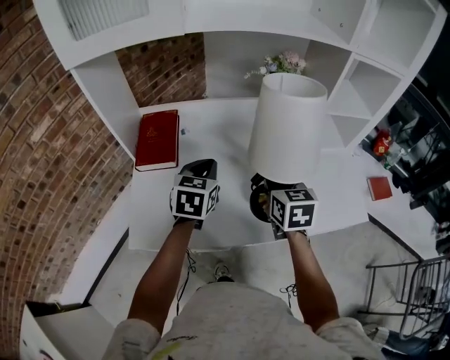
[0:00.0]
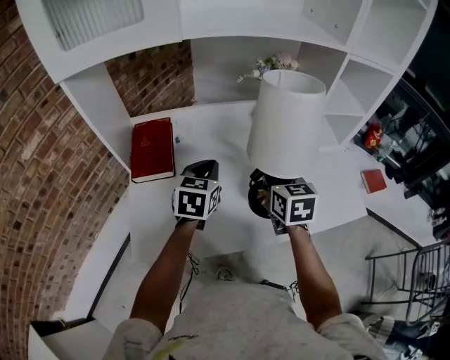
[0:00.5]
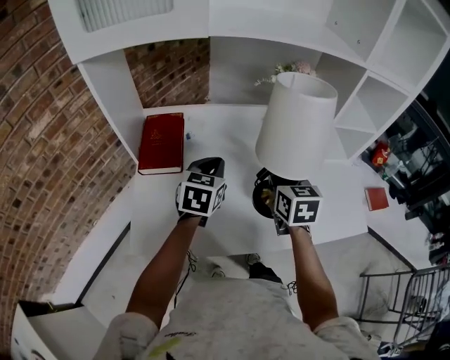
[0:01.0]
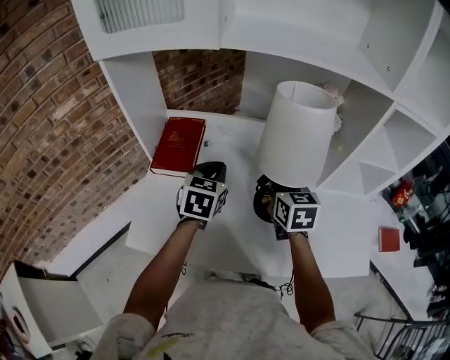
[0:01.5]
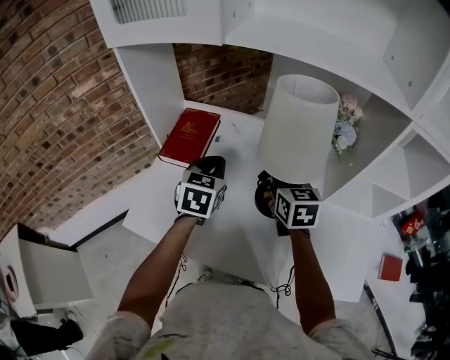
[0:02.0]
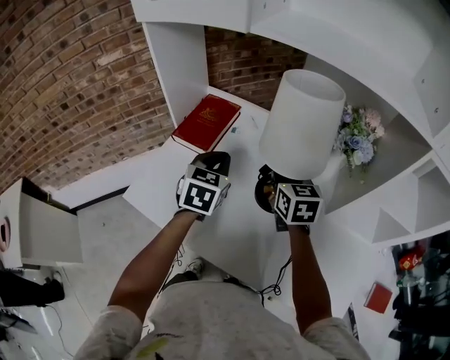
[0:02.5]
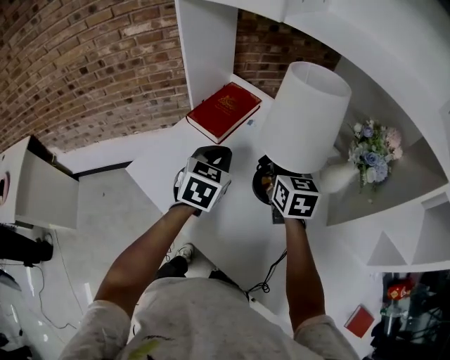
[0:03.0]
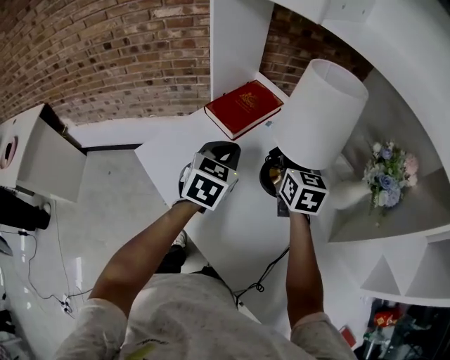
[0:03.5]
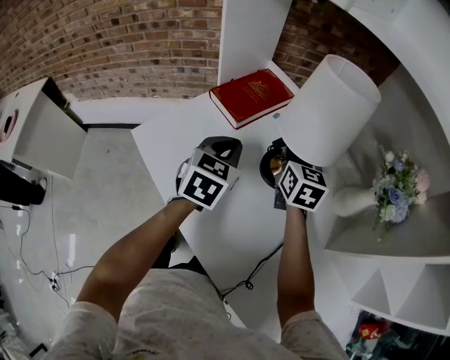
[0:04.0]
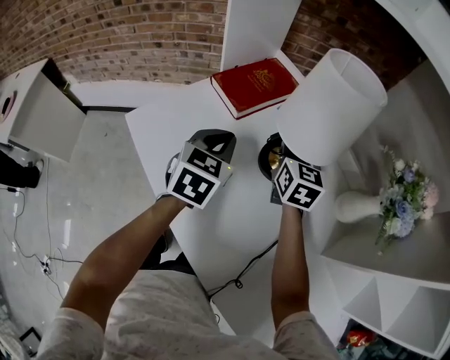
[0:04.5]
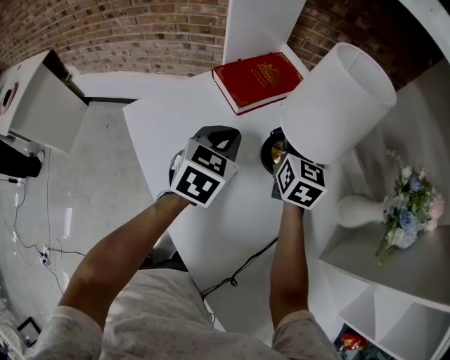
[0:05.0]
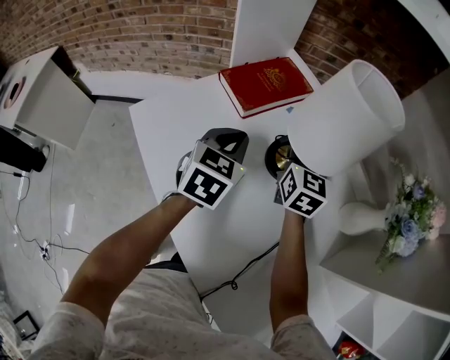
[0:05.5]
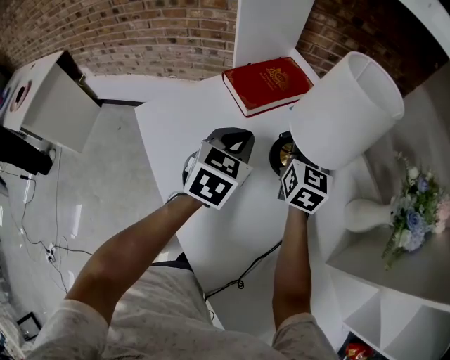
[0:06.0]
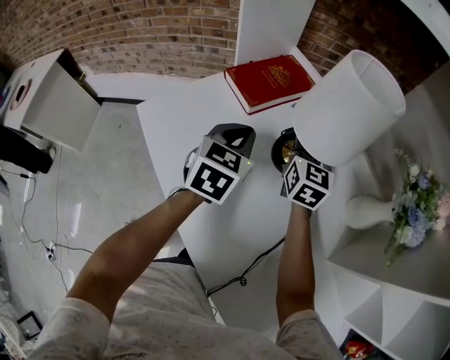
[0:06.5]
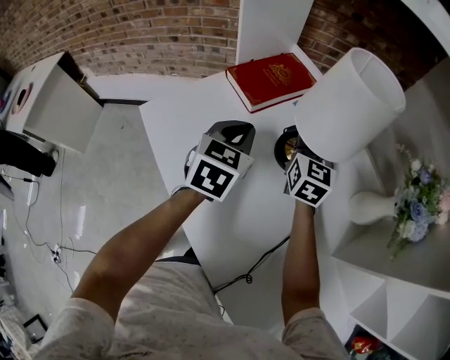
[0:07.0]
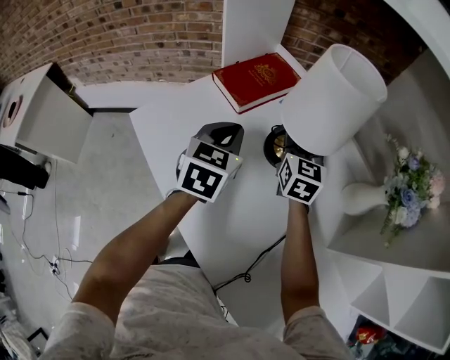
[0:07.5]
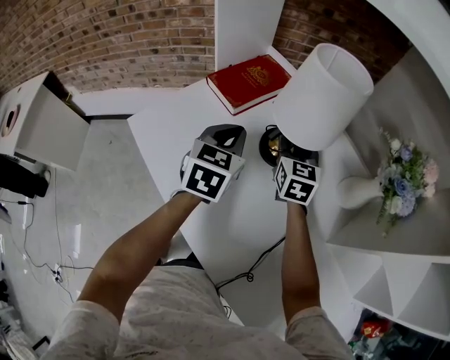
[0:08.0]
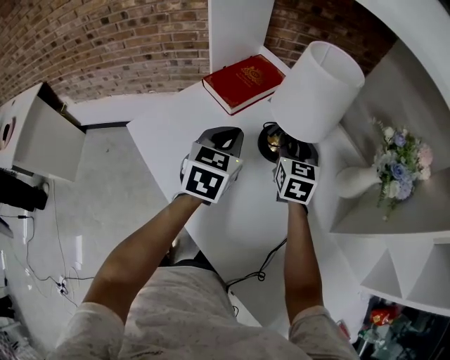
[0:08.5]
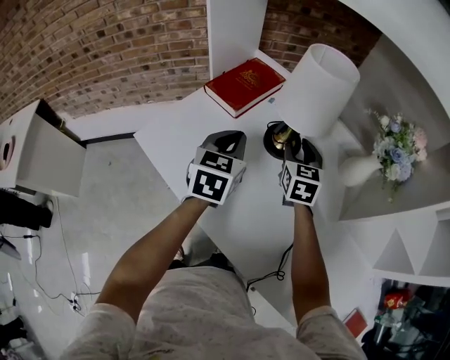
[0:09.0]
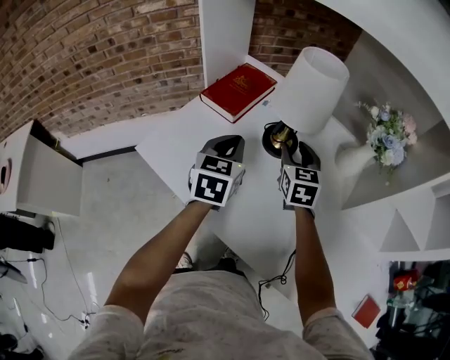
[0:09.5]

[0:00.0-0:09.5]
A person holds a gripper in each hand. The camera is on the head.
0:00.0 to 0:02.0: The left gripper changes place by approximately 5 cm, and swivels approximately 20 degrees. Meanwhile the right gripper changes place by some 15 cm, and changes its angle by some 20 degrees.
0:02.0 to 0:04.0: The right gripper is displaced forward, to the left and downward by about 15 cm, and swivels approximately 20 degrees; the left gripper is displaced downward by approximately 5 cm, and swivels about 30 degrees.
0:04.0 to 0:07.5: The grippers stay close to where they were, moving slightly.
0:07.5 to 0:09.5: The right gripper heads backward, covering roughly 10 cm, while the left gripper moves some 5 cm.

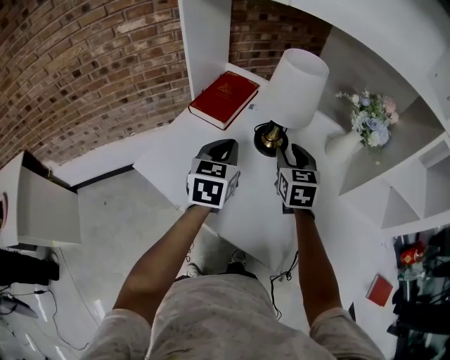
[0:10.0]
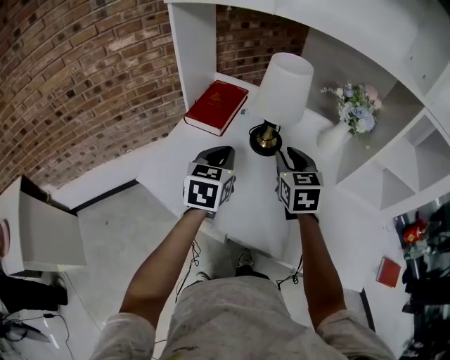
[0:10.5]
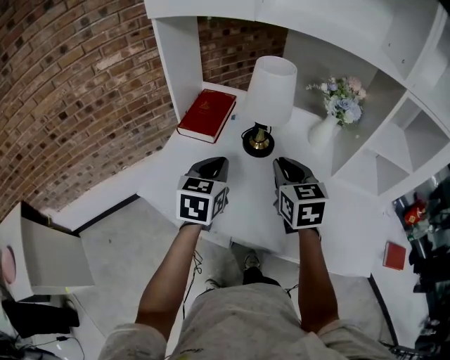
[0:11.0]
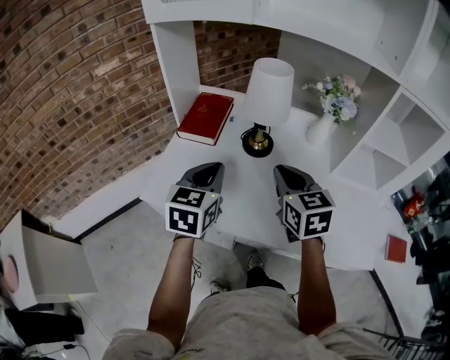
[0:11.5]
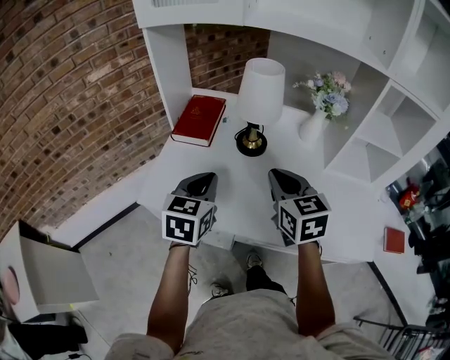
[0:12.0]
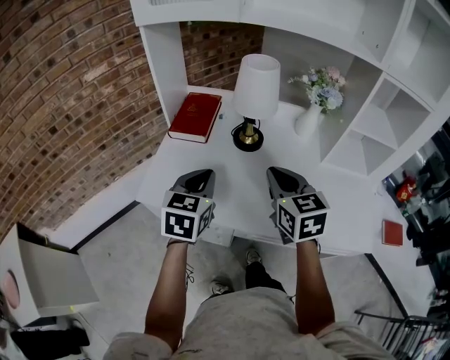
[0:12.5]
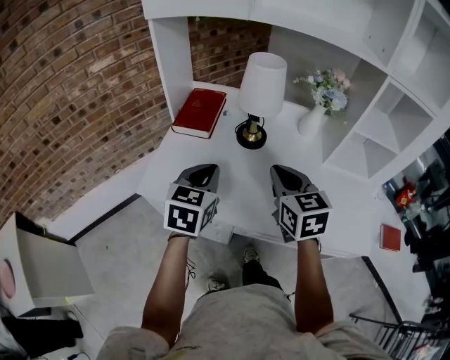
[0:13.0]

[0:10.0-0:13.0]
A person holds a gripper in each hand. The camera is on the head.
0:10.0 to 0:11.5: The right gripper shifts some 15 cm backward and upward, and closes; the left gripper travels backward and upward by about 10 cm.
0:11.5 to 0:13.0: There are only small adjustments of the grippers.

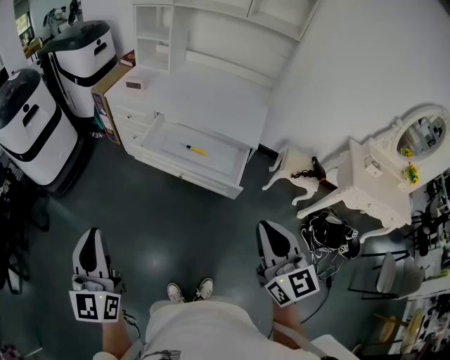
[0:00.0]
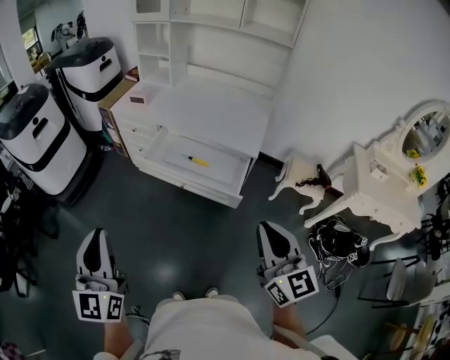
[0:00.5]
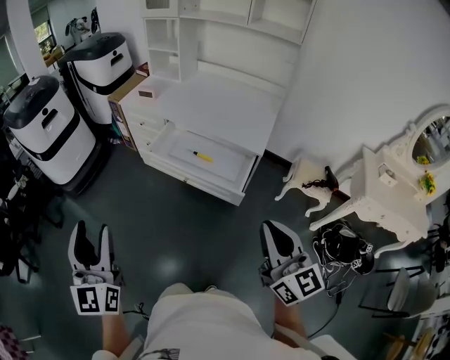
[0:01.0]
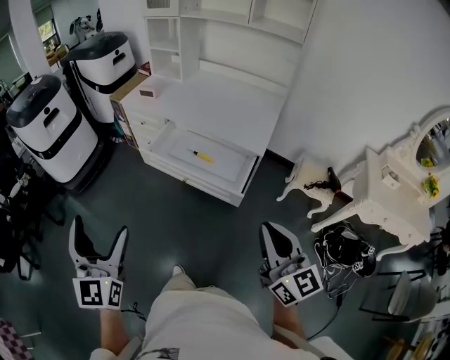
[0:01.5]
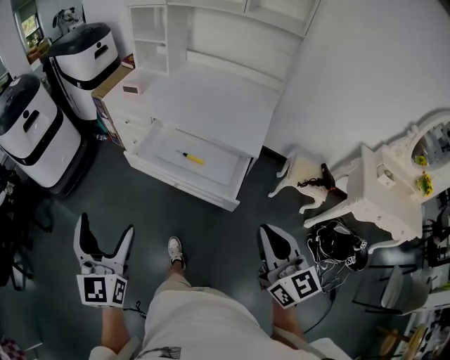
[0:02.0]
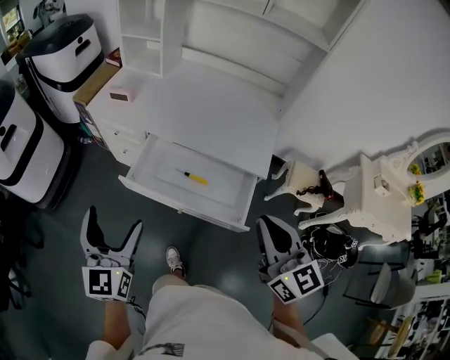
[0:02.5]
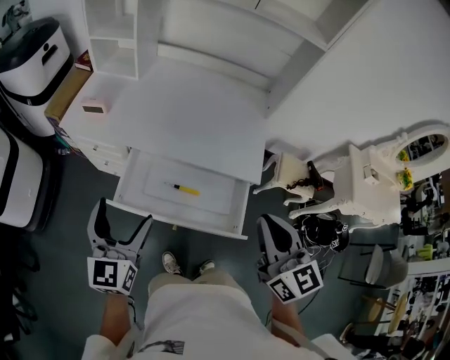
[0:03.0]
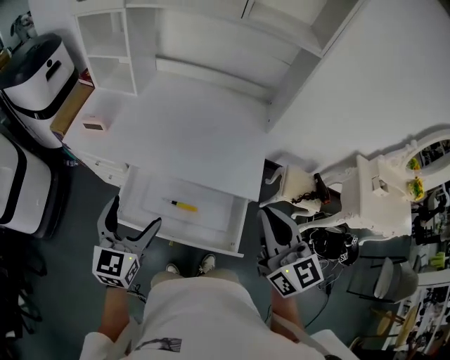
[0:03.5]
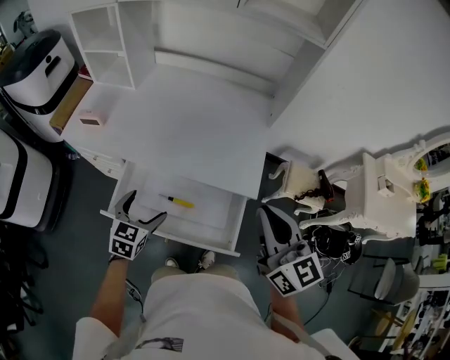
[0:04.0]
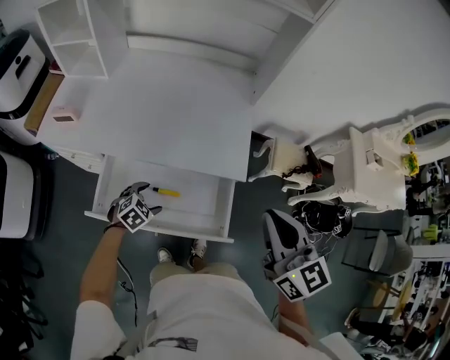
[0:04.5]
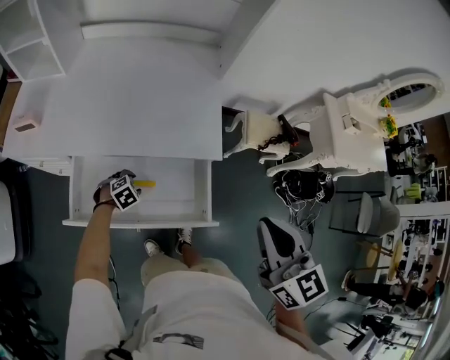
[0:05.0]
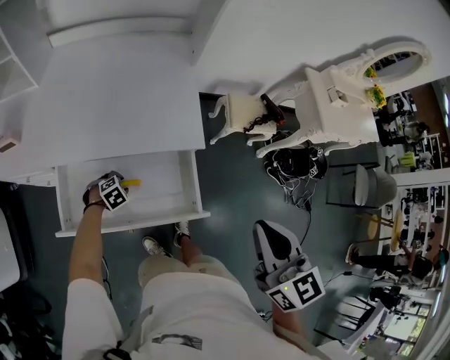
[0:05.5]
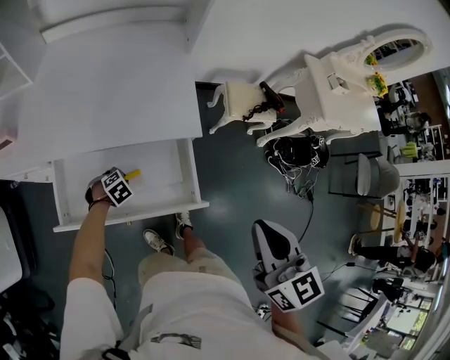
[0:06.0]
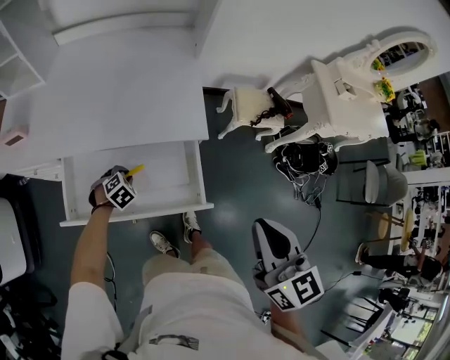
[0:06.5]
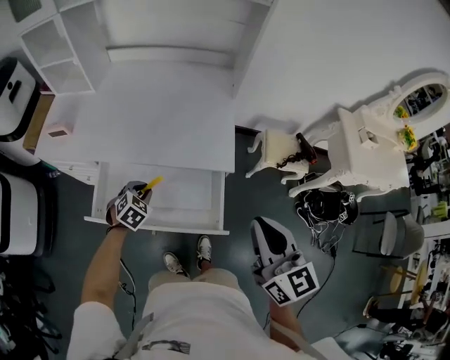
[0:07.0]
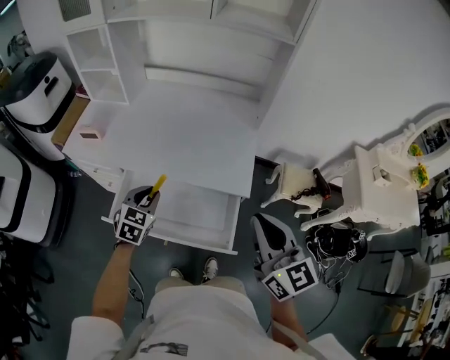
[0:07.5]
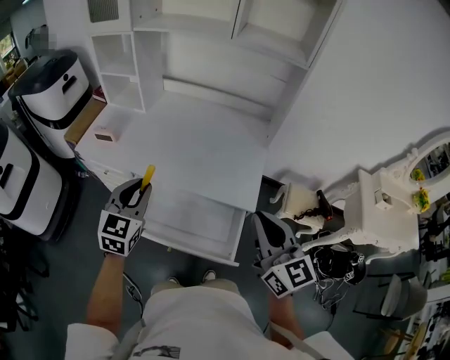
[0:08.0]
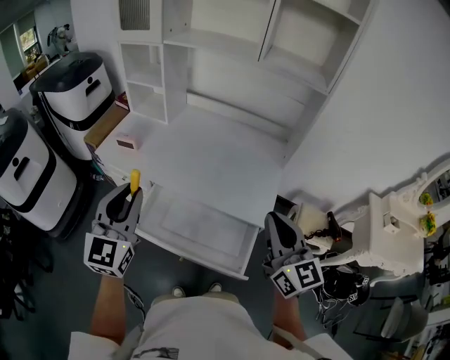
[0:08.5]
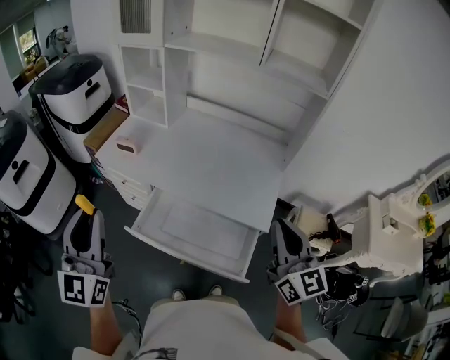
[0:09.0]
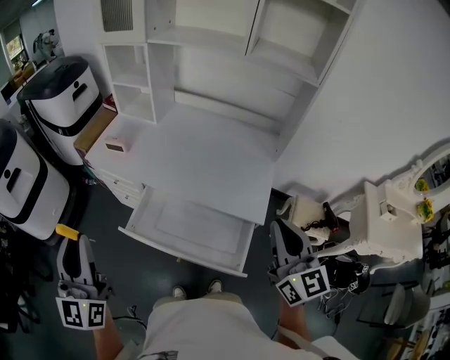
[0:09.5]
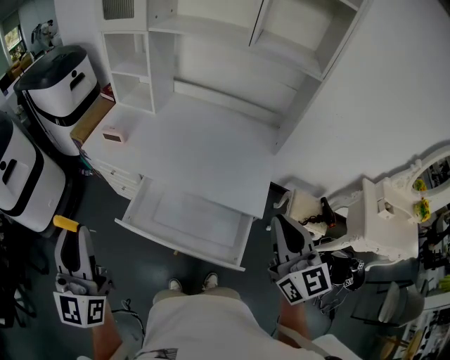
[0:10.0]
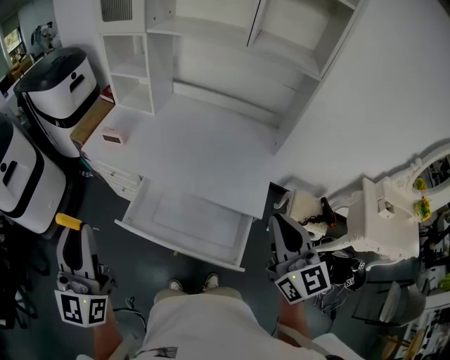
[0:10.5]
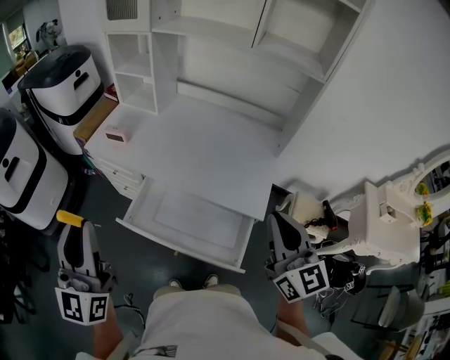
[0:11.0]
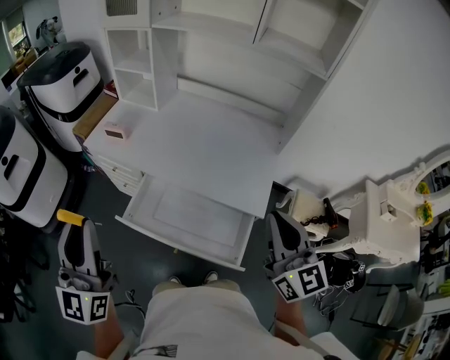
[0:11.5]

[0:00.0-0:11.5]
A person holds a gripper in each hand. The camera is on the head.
0:00.0 to 0:02.0: The grippers both shift to the right and forward by approximately 10 cm. The left gripper opens its fingers.
0:02.0 to 0:04.0: The right gripper is displaced forward by some 35 cm. The left gripper travels forward and downward by about 50 cm, and tips its fingers downward by approximately 30 degrees.
0:04.0 to 0:06.0: The right gripper changes place by about 15 cm, and swivels roughly 30 degrees; the left gripper moves downward, approximately 25 cm, points its fingers approximately 40 degrees further downward, and closes its fingers.
0:06.0 to 0:07.5: The left gripper moves upward, approximately 30 cm, and tilts its fingers approximately 40 degrees upward. Meanwhile the right gripper ends up roughly 10 cm from where it was, and turns by approximately 30 degrees.
0:07.5 to 0:09.5: The left gripper moves upward, to the left and backward, some 40 cm, and tips its fingers upward by roughly 50 degrees; the right gripper shifts some 5 cm upward.
0:09.5 to 0:11.5: The grippers stay close to where they were, moving slightly.

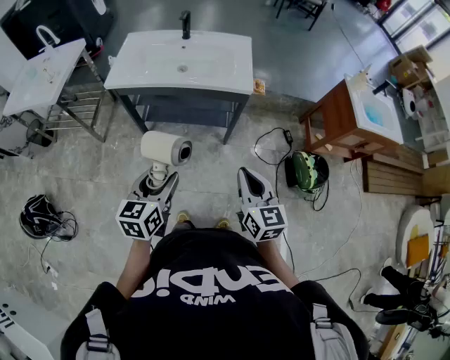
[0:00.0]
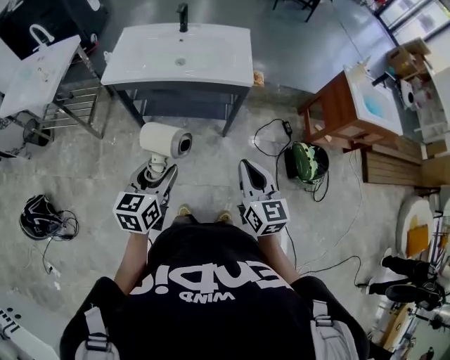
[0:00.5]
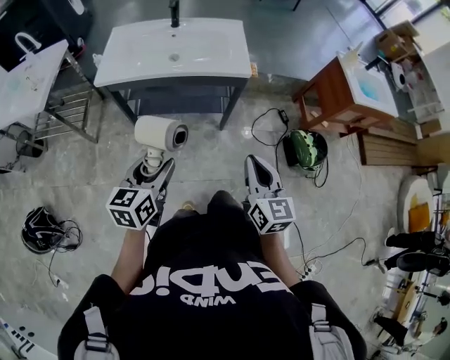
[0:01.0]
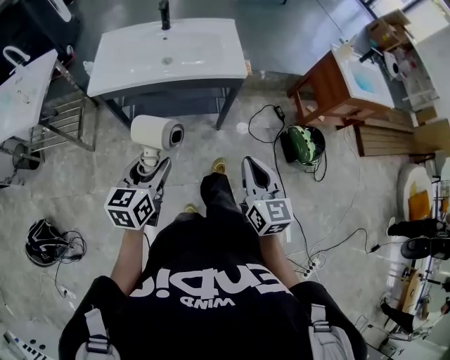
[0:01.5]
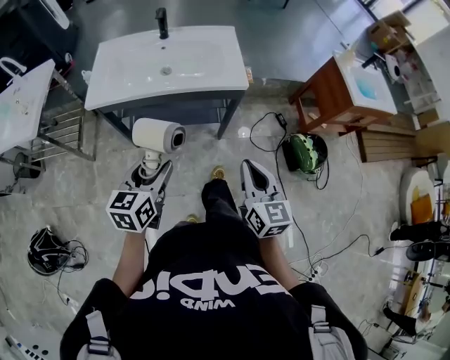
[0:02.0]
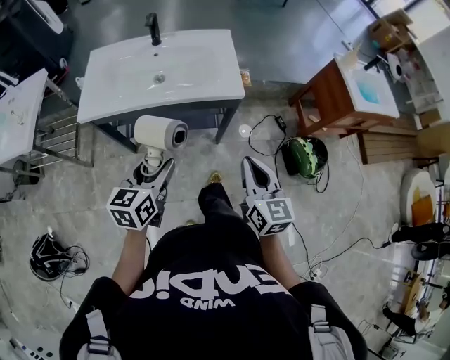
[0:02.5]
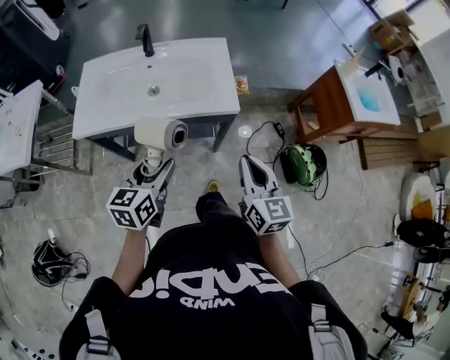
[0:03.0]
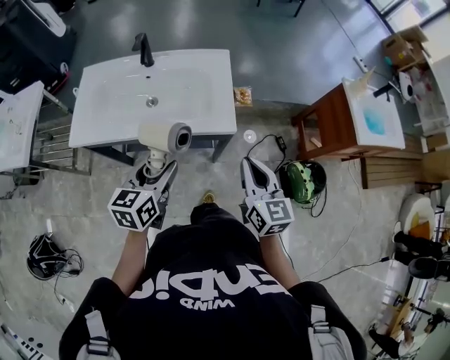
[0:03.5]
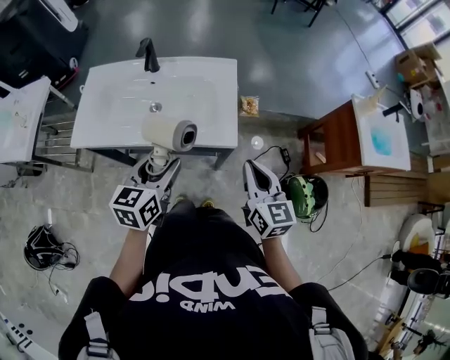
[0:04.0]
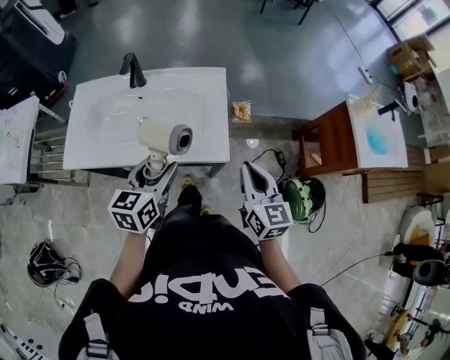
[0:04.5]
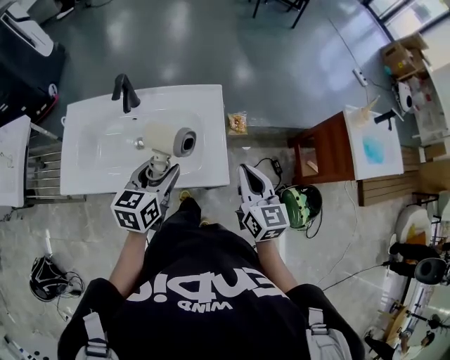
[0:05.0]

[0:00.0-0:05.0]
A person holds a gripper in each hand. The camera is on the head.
0:00.0 to 0:02.5: Both grippers travel together forward, about 15 cm.
0:02.5 to 0:05.0: Both grippers move forward, about 30 cm.
